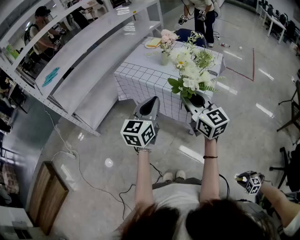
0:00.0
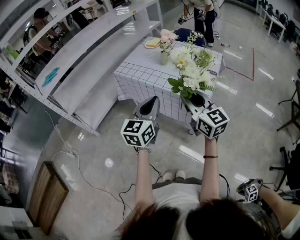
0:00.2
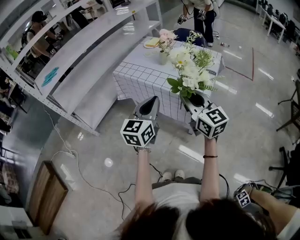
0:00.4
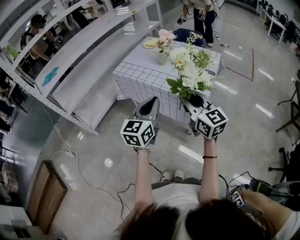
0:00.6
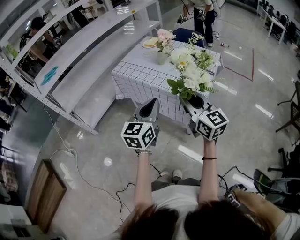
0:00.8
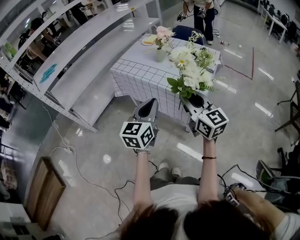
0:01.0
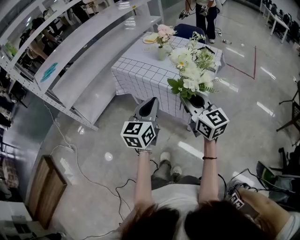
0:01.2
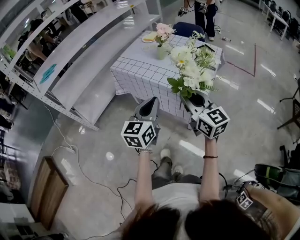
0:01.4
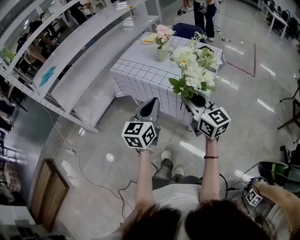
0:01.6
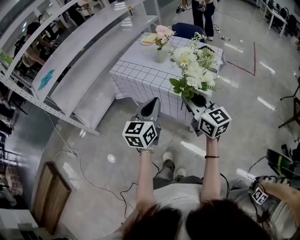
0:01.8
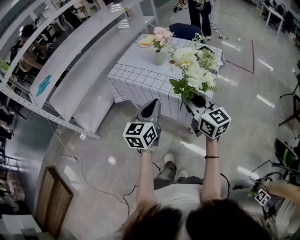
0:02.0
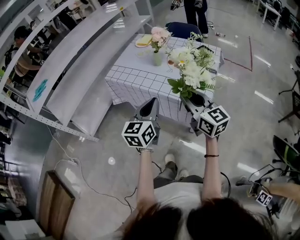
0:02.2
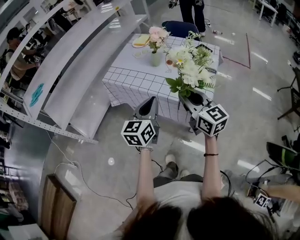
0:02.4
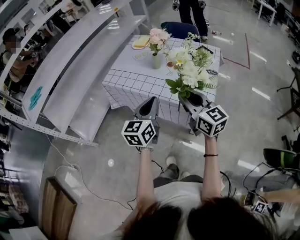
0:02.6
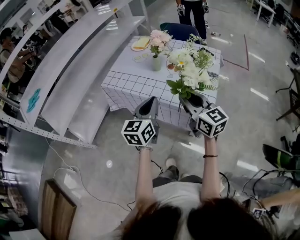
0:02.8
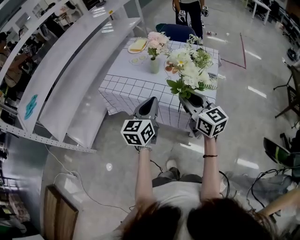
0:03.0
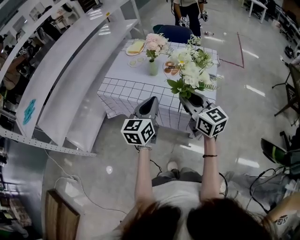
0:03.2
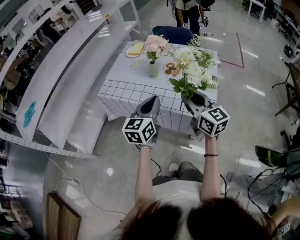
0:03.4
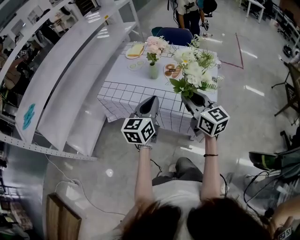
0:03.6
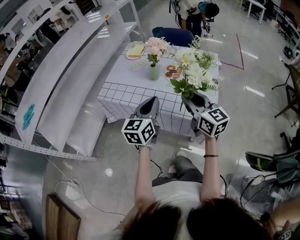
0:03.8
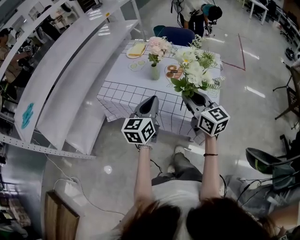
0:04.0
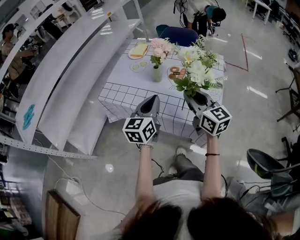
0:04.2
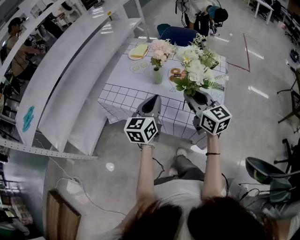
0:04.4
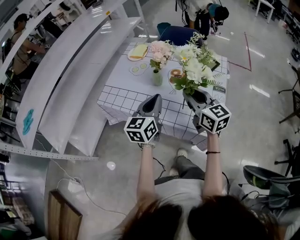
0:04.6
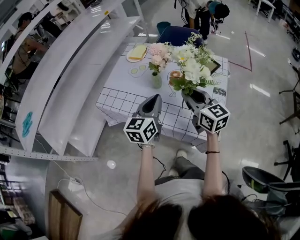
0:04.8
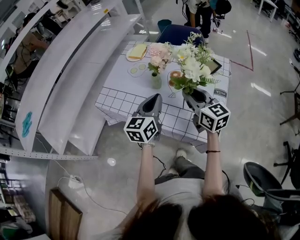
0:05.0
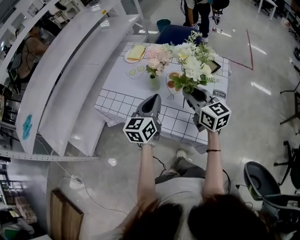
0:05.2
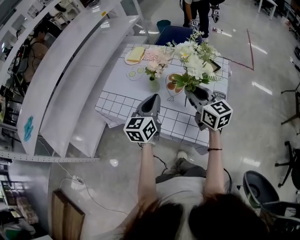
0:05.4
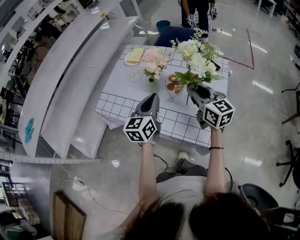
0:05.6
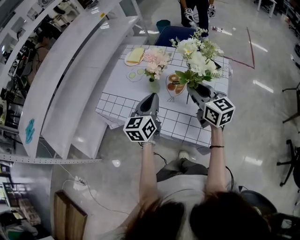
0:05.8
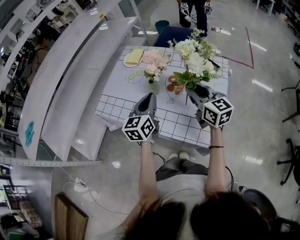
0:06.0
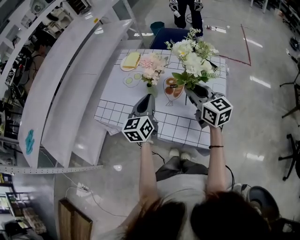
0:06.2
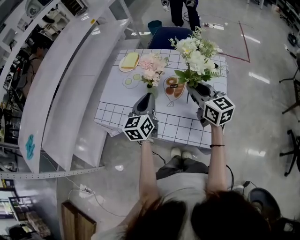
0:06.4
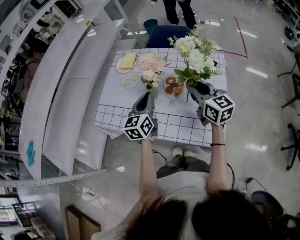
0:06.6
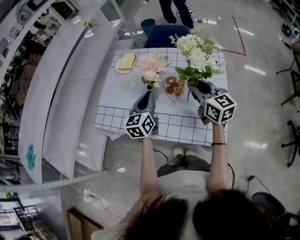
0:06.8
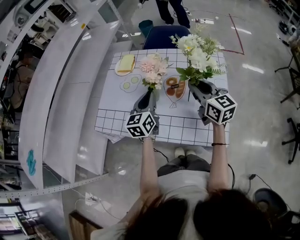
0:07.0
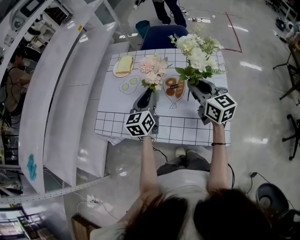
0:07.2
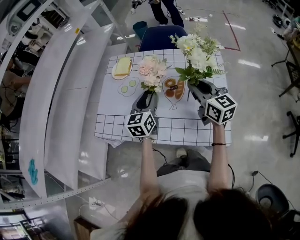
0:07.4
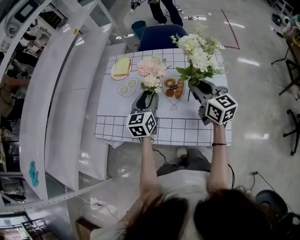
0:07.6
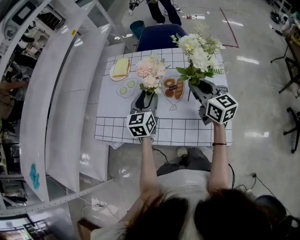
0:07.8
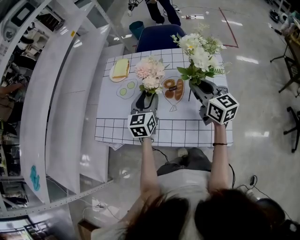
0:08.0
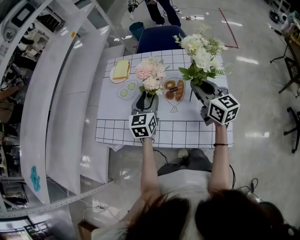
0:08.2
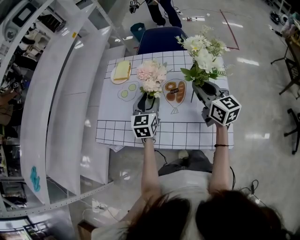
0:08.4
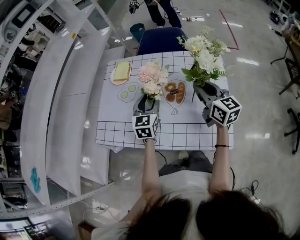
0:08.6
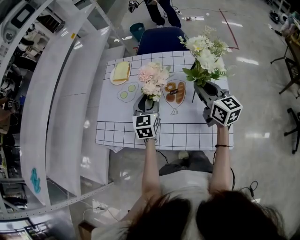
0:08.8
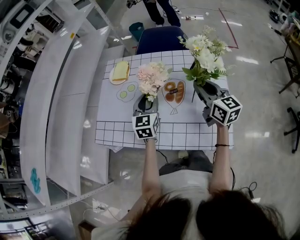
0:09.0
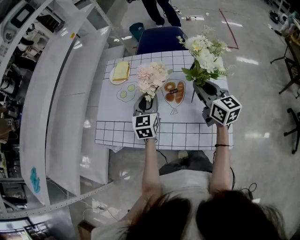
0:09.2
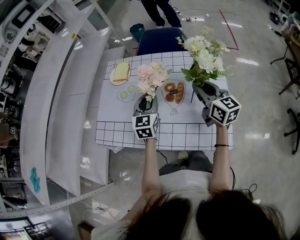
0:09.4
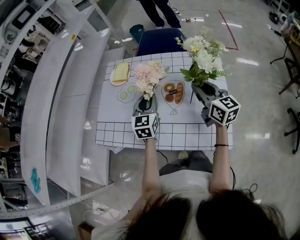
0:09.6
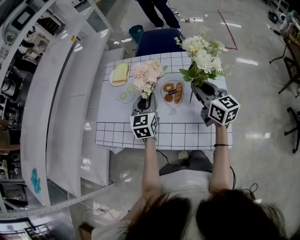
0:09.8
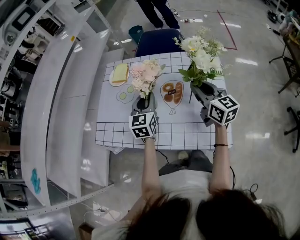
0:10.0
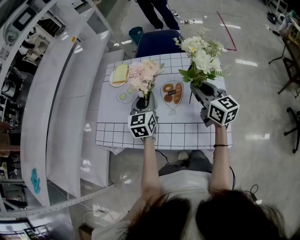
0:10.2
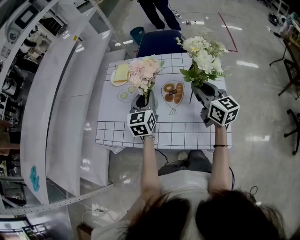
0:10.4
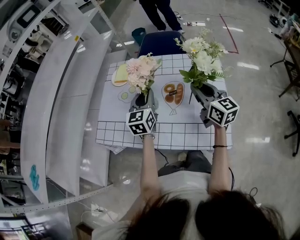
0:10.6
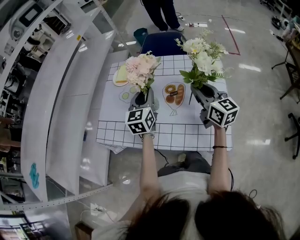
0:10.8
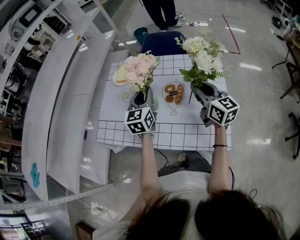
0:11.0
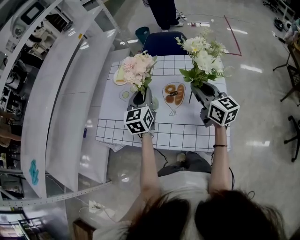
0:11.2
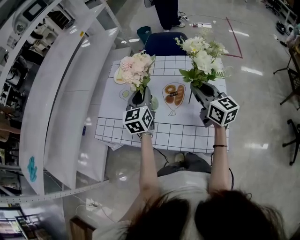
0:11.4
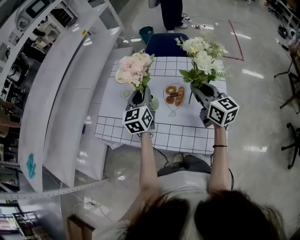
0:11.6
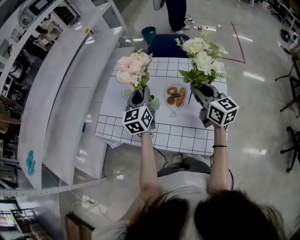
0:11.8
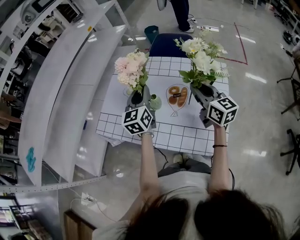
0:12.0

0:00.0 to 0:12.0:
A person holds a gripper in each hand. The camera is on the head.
0:00.0 to 0:01.6: There are only small adjustments of the grippers.
0:01.6 to 0:03.0: The grippers both shift forward by about 15 cm.
0:03.0 to 0:04.4: The two grippers go roughly 10 cm forward.
0:04.4 to 0:06.0: Both grippers travel together forward, about 10 cm.
0:06.0 to 0:07.6: The left gripper goes roughly 10 cm forward and downward, and opens its fingers. The right gripper ends up roughly 5 cm from where it was.
0:07.6 to 0:10.4: There are only small adjustments of the grippers.
0:10.4 to 0:12.0: The left gripper moves upward, approximately 5 cm.

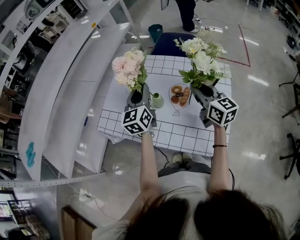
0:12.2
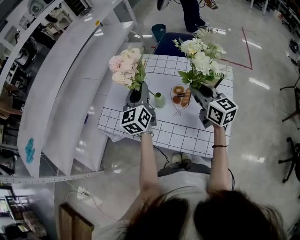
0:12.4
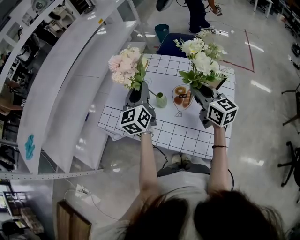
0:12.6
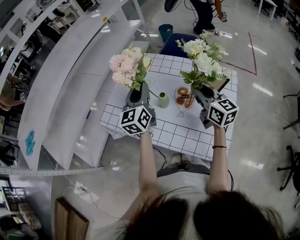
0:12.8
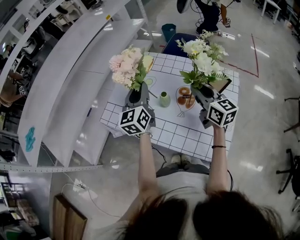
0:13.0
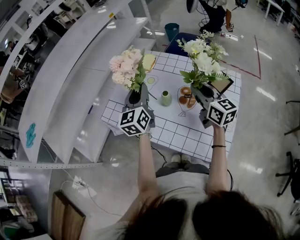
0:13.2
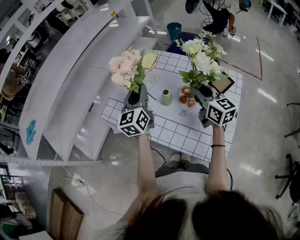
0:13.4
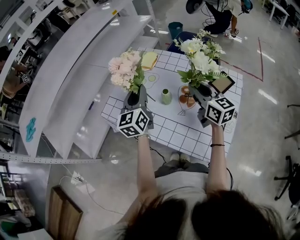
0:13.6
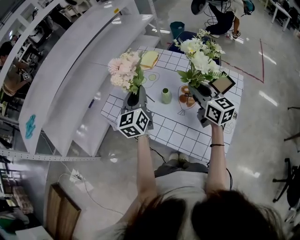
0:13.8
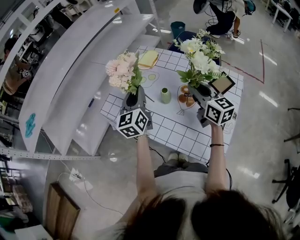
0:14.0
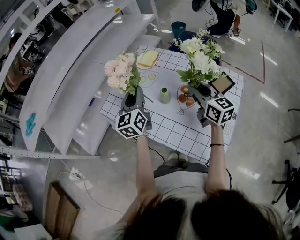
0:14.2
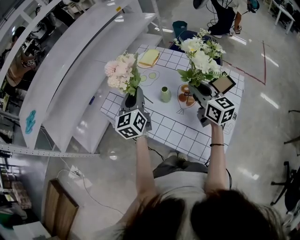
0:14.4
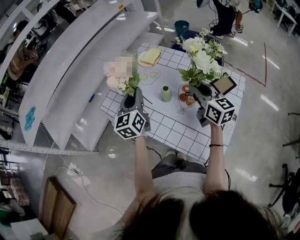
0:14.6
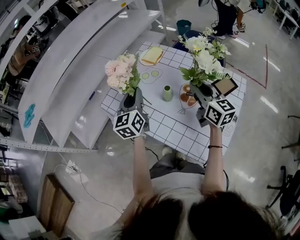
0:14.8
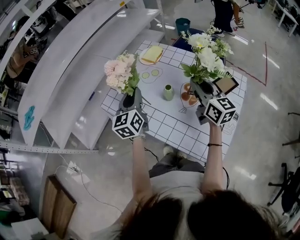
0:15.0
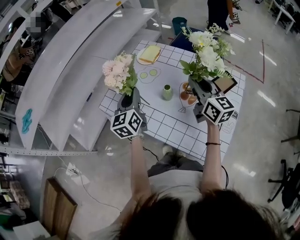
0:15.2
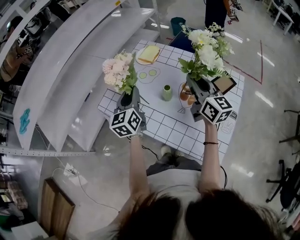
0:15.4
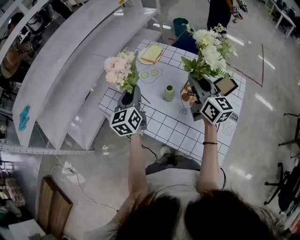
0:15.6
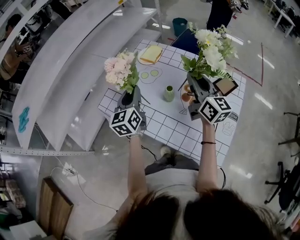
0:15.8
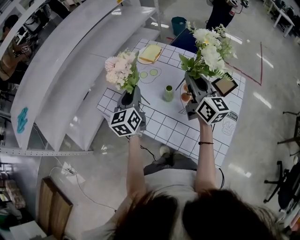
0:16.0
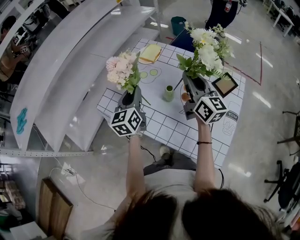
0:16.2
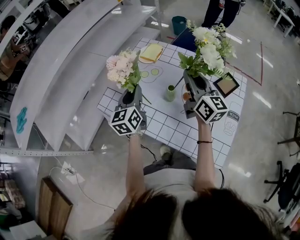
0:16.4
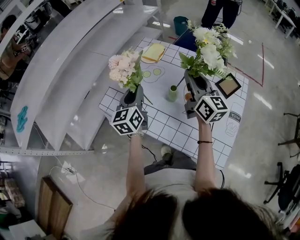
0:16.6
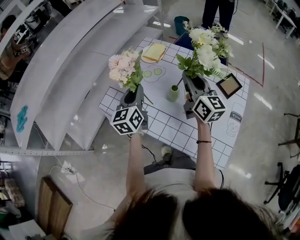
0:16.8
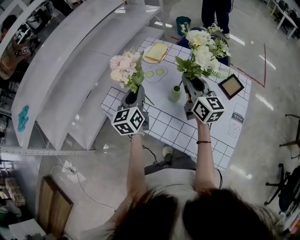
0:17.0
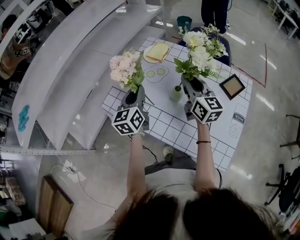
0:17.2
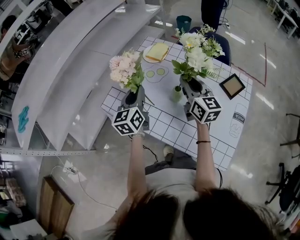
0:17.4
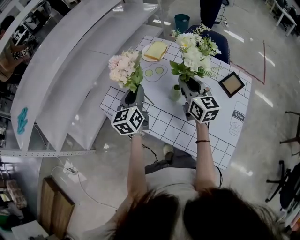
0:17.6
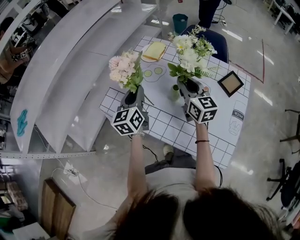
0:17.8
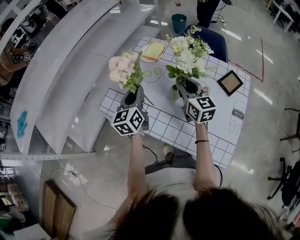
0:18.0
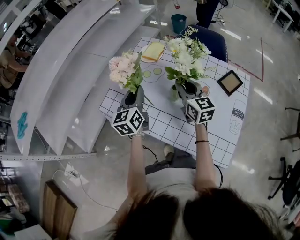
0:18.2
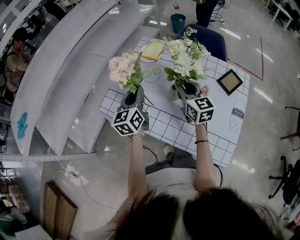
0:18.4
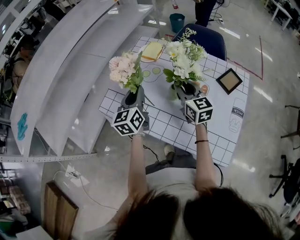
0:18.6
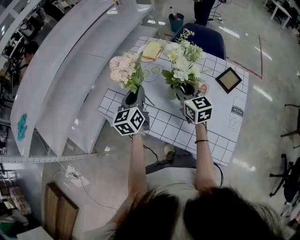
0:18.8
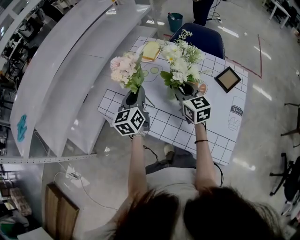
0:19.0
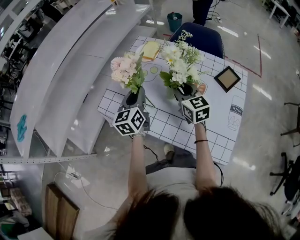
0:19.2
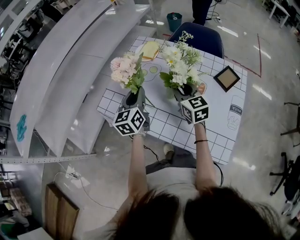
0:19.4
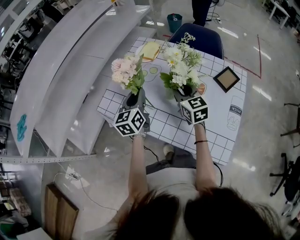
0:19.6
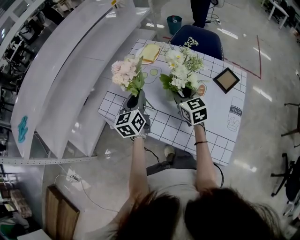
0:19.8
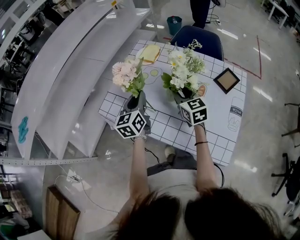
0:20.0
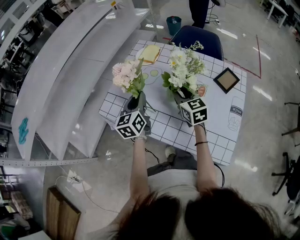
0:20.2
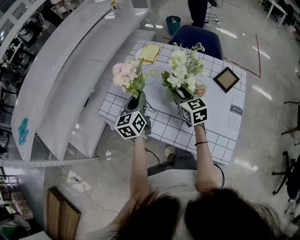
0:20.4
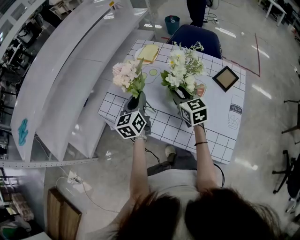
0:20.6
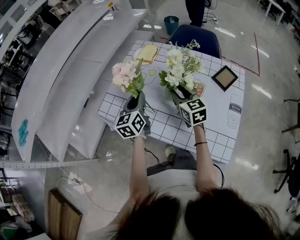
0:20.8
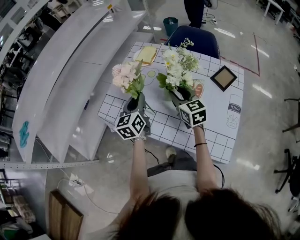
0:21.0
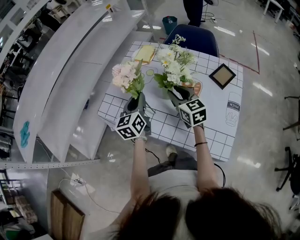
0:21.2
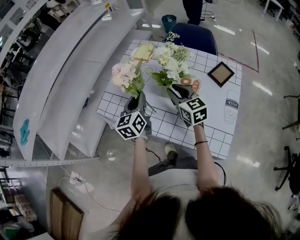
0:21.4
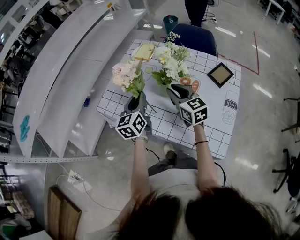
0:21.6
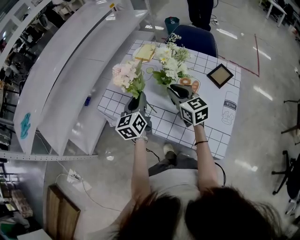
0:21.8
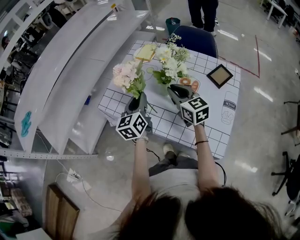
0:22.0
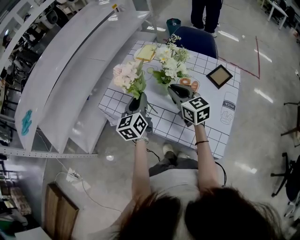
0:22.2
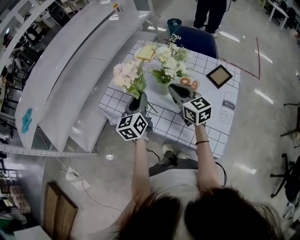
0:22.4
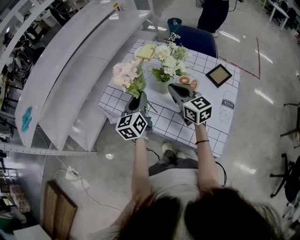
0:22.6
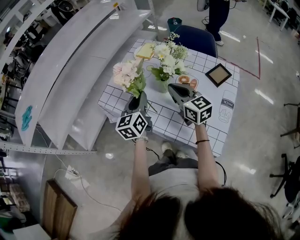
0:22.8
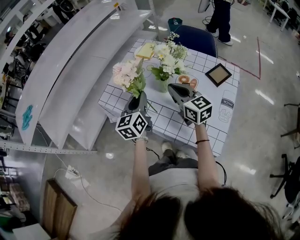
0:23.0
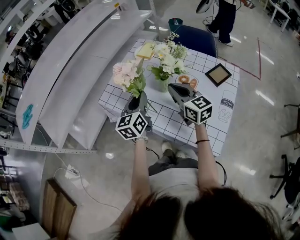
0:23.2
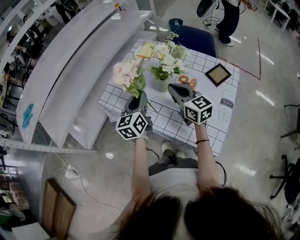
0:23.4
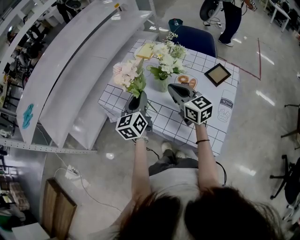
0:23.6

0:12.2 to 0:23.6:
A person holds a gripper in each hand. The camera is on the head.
0:12.2 to 0:13.6: The left gripper moves to the left, some 5 cm, while the right gripper moves roughly 5 cm.
0:13.6 to 0:15.0: The left gripper changes place by some 5 cm.
0:15.0 to 0:16.4: The right gripper ends up some 5 cm from where it was.
0:16.4 to 0:17.8: The right gripper travels downward by roughly 10 cm.
0:17.8 to 0:19.4: The grippers move only a little.
0:19.4 to 0:20.8: There are only small adjustments of the grippers.
0:20.8 to 0:22.2: The right gripper travels upward and backward by some 5 cm. The left gripper is displaced backward by about 5 cm.
0:22.2 to 0:23.6: The grippers move only a little.

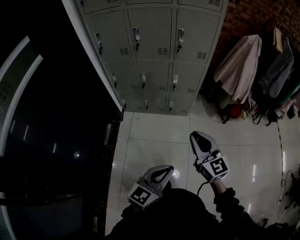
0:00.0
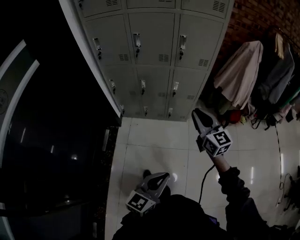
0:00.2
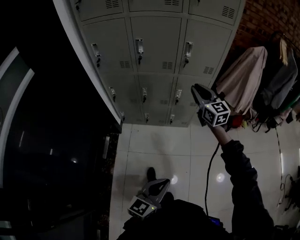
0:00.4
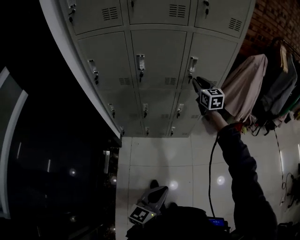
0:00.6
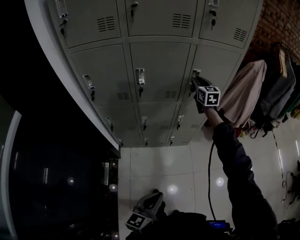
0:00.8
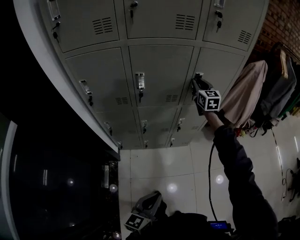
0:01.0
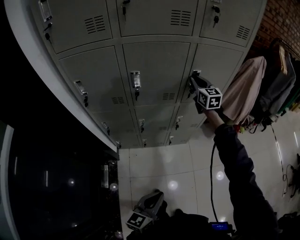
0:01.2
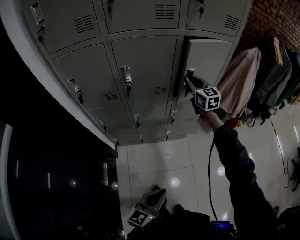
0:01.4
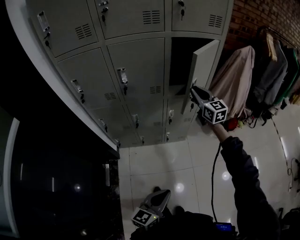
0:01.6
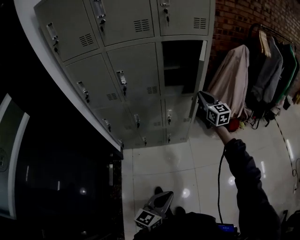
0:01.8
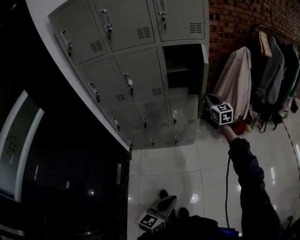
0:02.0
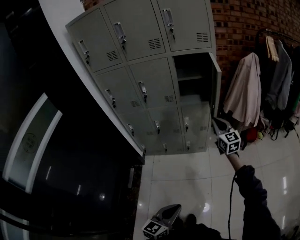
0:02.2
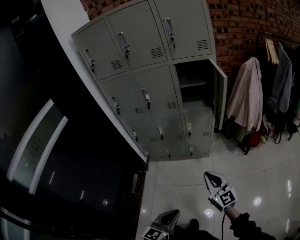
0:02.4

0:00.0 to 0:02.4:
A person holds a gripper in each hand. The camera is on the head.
0:00.0 to 0:01.2: The left gripper moves to the left and forward, some 30 cm, while the right gripper heads forward, covering some 60 cm.
0:01.2 to 0:02.4: The right gripper goes approximately 60 cm backward, and turns by some 20 degrees. Meanwhile the left gripper heads backward and to the right, covering roughly 30 cm.
